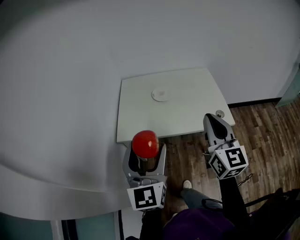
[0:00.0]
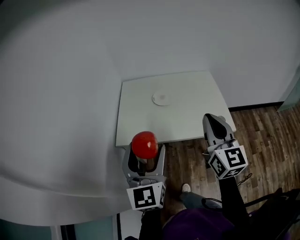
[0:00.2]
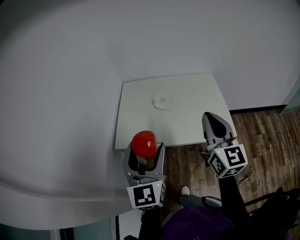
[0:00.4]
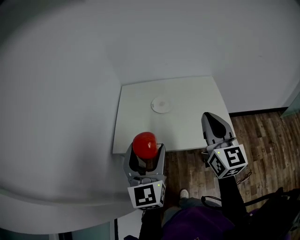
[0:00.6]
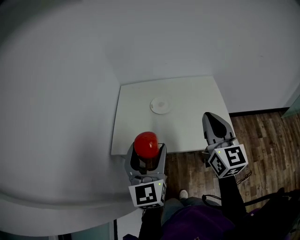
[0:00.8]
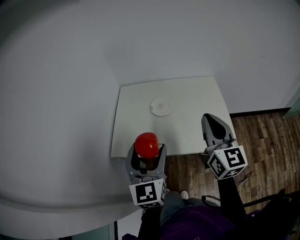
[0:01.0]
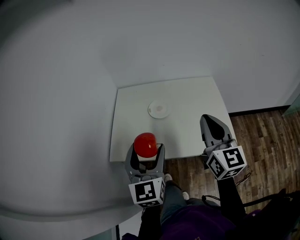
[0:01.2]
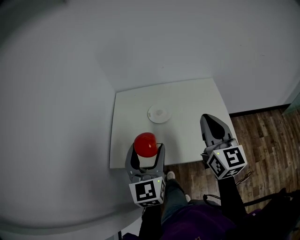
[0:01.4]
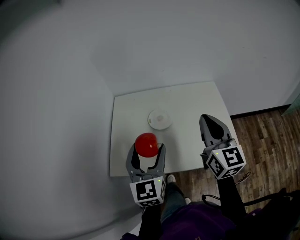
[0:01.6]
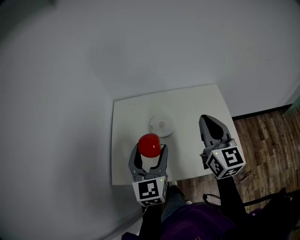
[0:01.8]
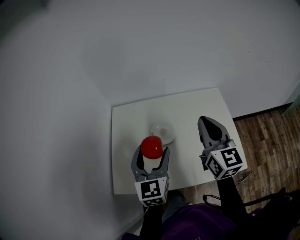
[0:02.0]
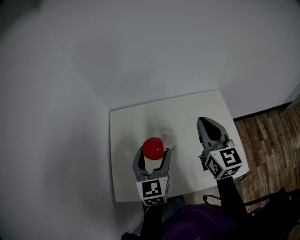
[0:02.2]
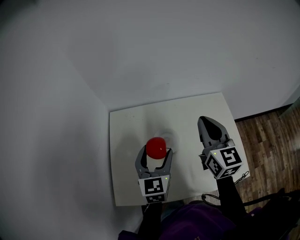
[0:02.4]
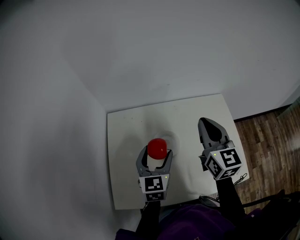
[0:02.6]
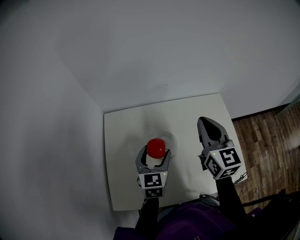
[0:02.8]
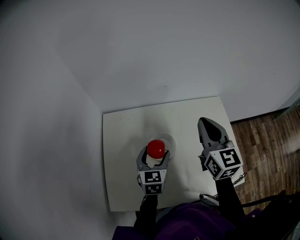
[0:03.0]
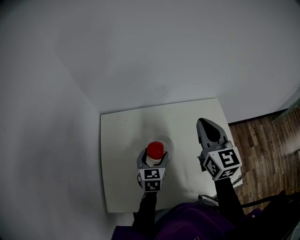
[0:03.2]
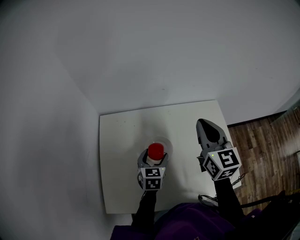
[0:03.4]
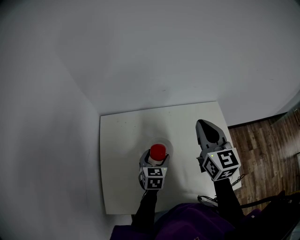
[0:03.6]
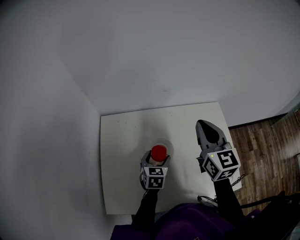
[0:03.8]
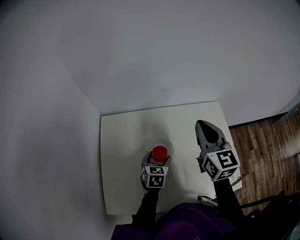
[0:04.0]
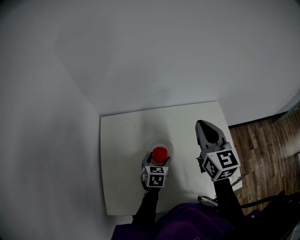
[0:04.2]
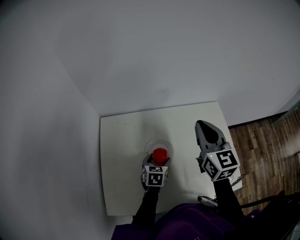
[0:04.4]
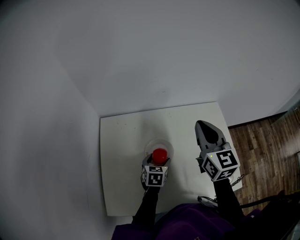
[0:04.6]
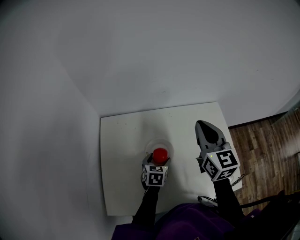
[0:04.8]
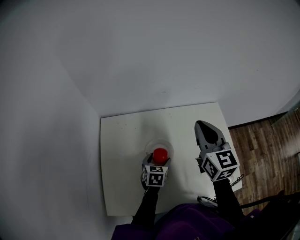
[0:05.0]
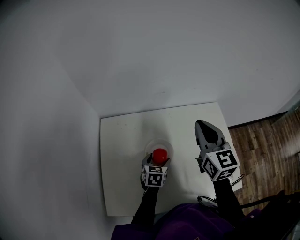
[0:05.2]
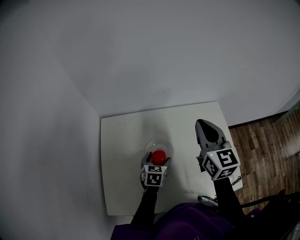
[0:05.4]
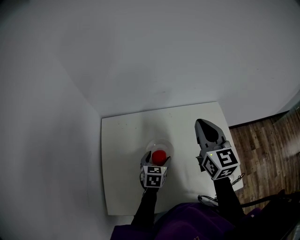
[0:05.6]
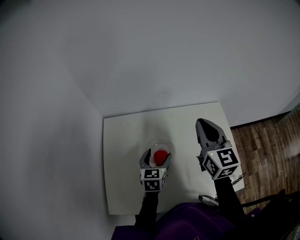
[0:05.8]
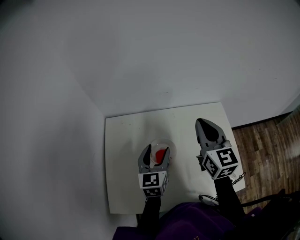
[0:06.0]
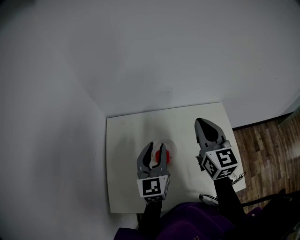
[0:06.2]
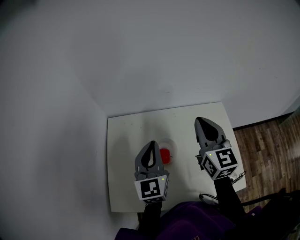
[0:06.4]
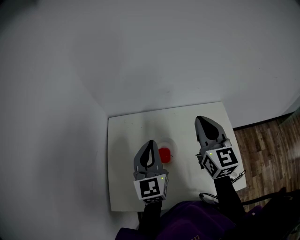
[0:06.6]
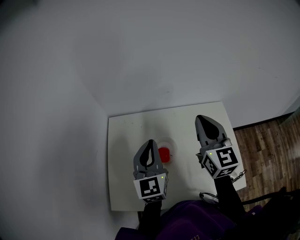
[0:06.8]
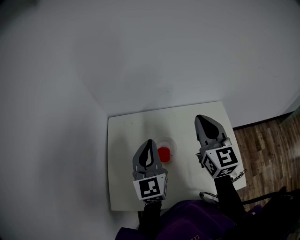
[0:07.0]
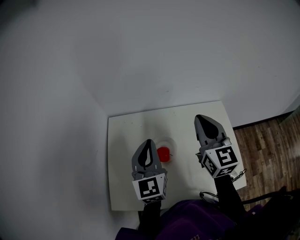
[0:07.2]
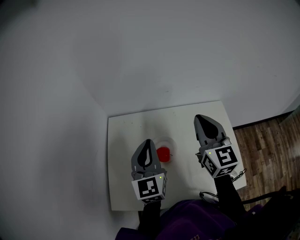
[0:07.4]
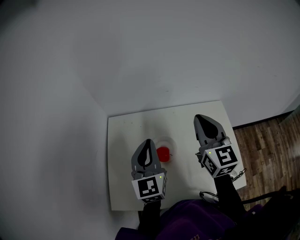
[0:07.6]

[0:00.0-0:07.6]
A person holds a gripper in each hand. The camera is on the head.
0:00.0 to 0:01.6: The grippers both shift forward by some 25 cm.
0:01.6 to 0:03.0: The right gripper goes roughly 20 cm forward, while the left gripper travels forward and downward by about 30 cm, and swivels roughly 30 degrees.
0:03.0 to 0:04.6: The left gripper heads downward, covering approximately 10 cm.
0:04.6 to 0:06.0: The left gripper is displaced upward by roughly 15 cm, and changes its angle by roughly 30 degrees.
0:06.0 to 0:07.6: The left gripper shifts about 10 cm upward, and closes up.

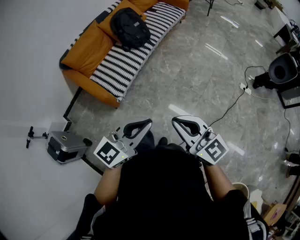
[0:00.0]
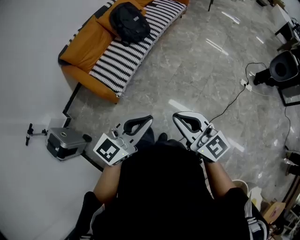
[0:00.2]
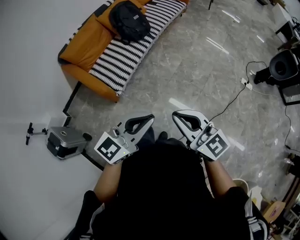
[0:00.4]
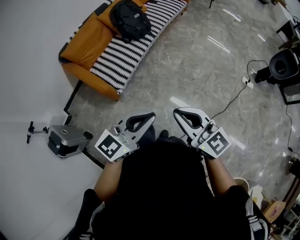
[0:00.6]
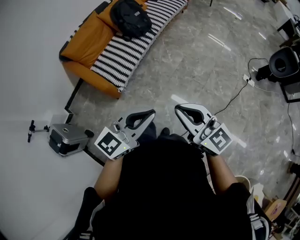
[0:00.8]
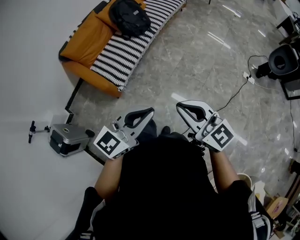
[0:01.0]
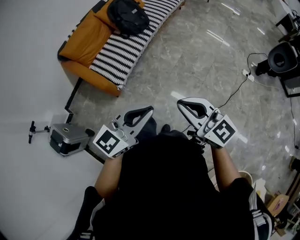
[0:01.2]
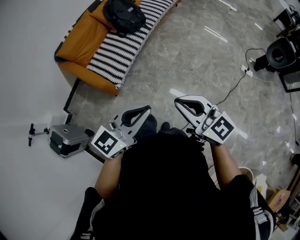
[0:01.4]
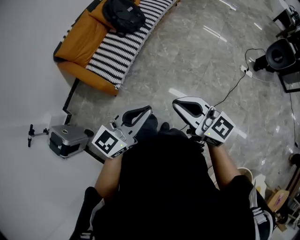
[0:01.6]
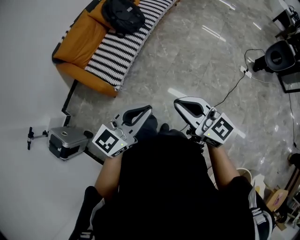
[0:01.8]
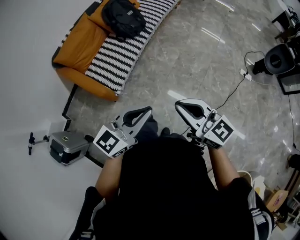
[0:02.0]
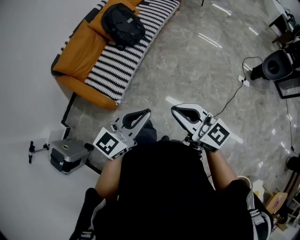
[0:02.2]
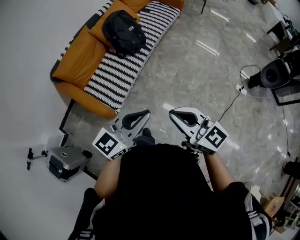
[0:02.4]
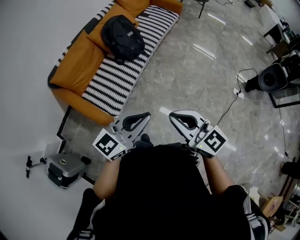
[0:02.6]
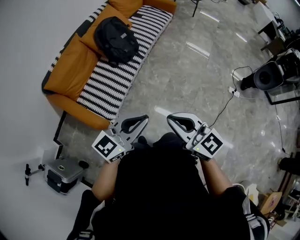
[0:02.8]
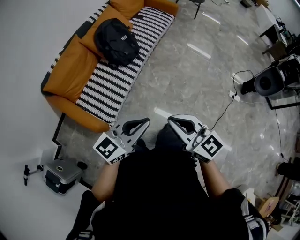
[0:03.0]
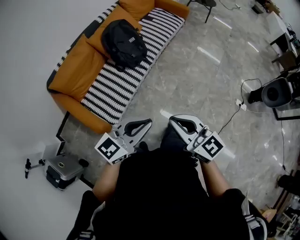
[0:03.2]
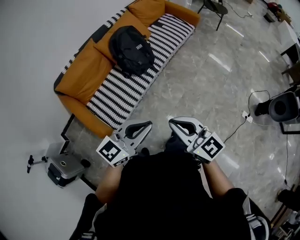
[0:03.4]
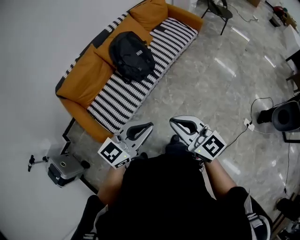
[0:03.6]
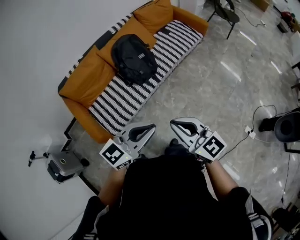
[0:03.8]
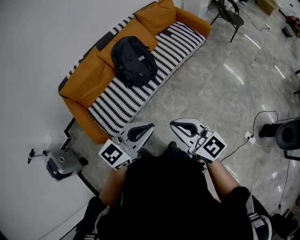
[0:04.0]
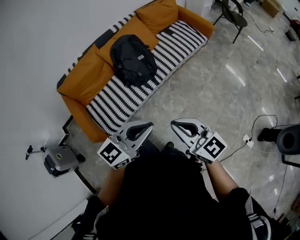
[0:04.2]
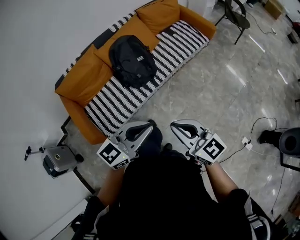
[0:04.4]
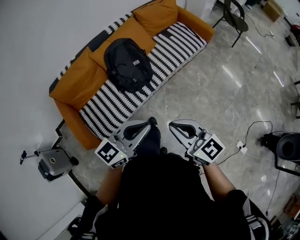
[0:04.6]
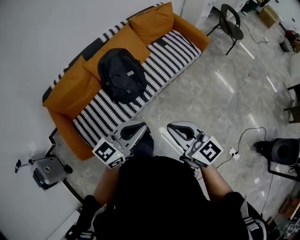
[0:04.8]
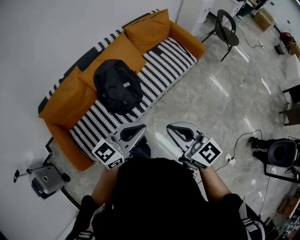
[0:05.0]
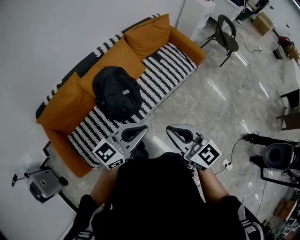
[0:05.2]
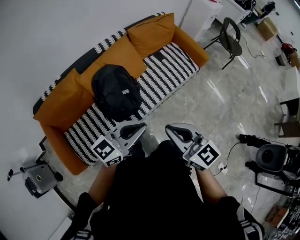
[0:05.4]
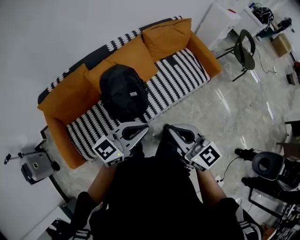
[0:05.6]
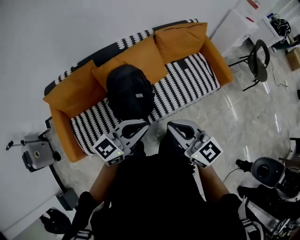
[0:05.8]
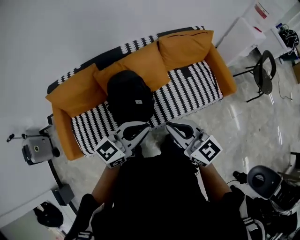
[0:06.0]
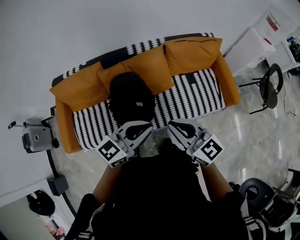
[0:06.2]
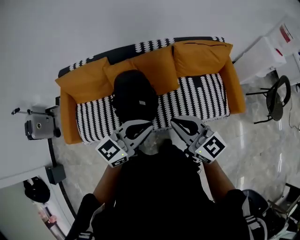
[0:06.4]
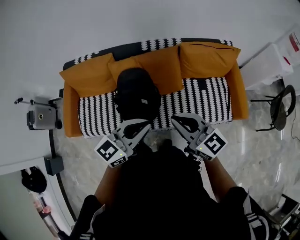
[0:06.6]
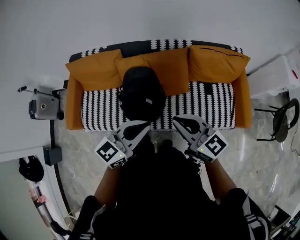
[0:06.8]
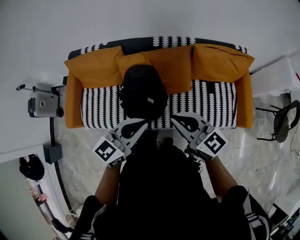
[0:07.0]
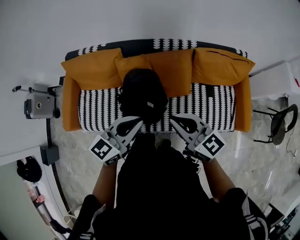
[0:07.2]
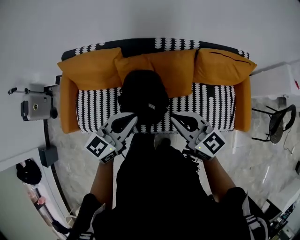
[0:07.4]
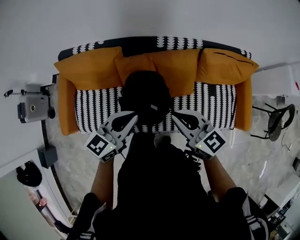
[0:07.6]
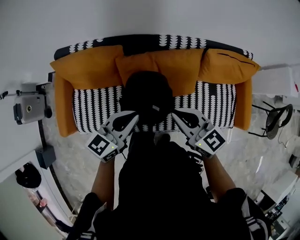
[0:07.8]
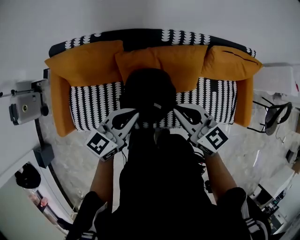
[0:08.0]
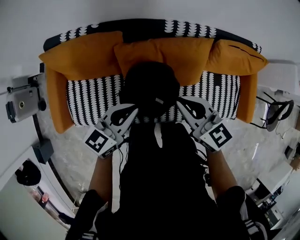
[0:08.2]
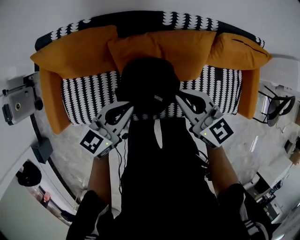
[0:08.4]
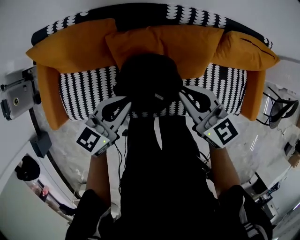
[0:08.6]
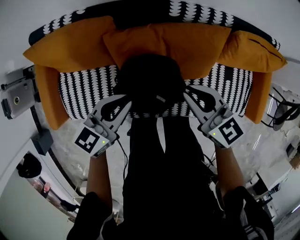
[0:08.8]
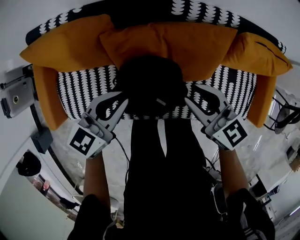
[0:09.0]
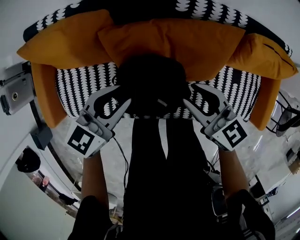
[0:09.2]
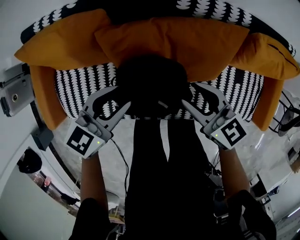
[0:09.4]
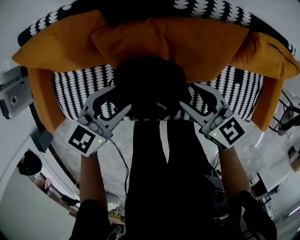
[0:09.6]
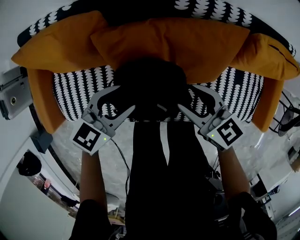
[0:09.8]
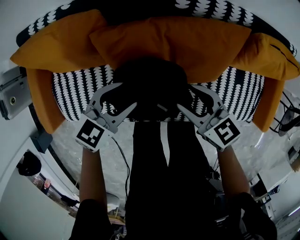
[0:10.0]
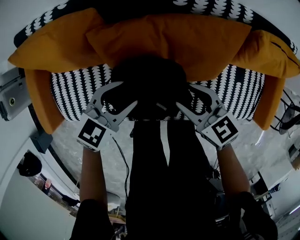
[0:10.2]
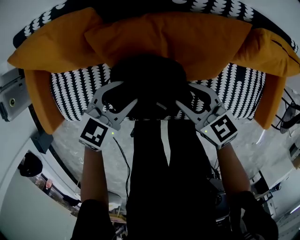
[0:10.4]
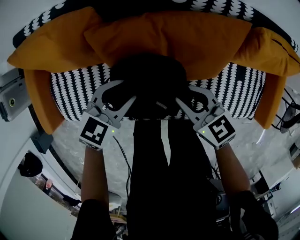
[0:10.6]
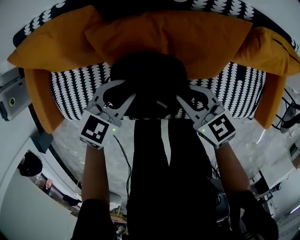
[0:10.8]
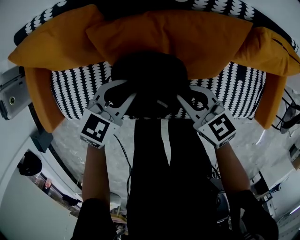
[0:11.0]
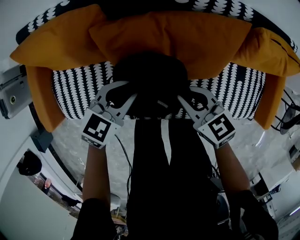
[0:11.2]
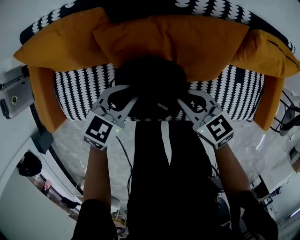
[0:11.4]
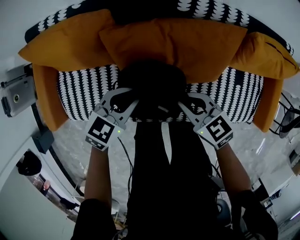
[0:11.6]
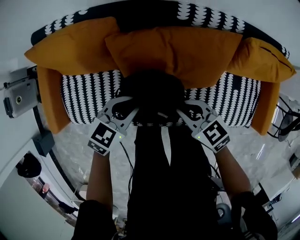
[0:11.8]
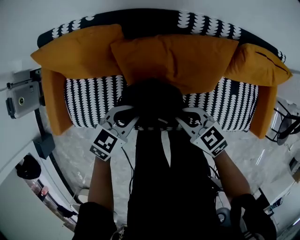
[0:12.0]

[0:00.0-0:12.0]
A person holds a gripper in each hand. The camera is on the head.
0:00.0 to 0:01.6: The grippers move only a little.
0:01.6 to 0:03.0: The two grippers go about 20 cm forward.
0:03.0 to 0:04.4: Both grippers travel together forward and to the right, about 30 cm. The left gripper swivels some 20 degrees, while the right gripper swivels roughly 20 degrees.
0:04.4 to 0:06.0: Both grippers move forward, some 40 cm.
0:06.0 to 0:07.6: The left gripper changes place by some 20 cm, and turns by approximately 30 degrees. Meanwhile the right gripper changes place by approximately 20 cm, and turns by approximately 20 degrees.
0:07.6 to 0:09.0: The grippers both shift downward and forward by about 20 cm. The right gripper opens its fingers.
0:09.0 to 0:10.4: The two grippers go roughly 10 cm downward. The left gripper opens its fingers. The right gripper opens.
0:10.4 to 0:12.0: The left gripper shifts by some 5 cm, and closes its fingers, while the right gripper moves roughly 5 cm, and closes up.

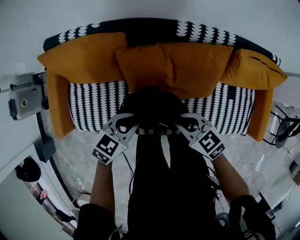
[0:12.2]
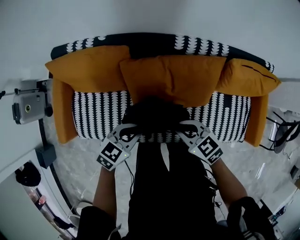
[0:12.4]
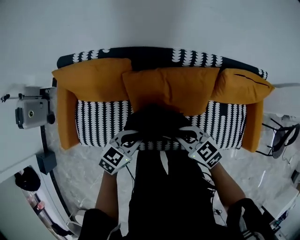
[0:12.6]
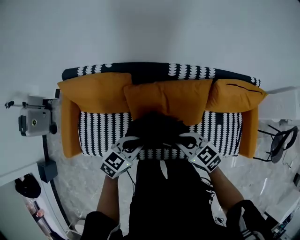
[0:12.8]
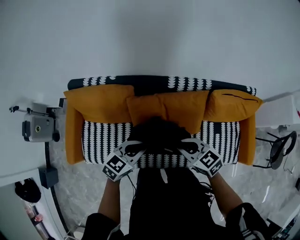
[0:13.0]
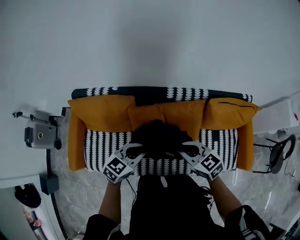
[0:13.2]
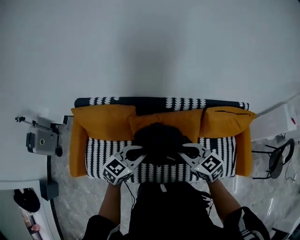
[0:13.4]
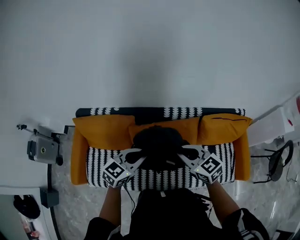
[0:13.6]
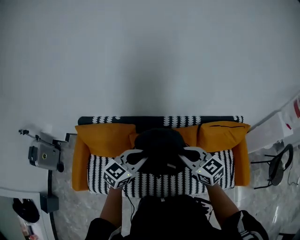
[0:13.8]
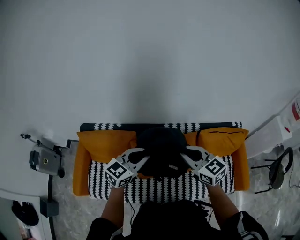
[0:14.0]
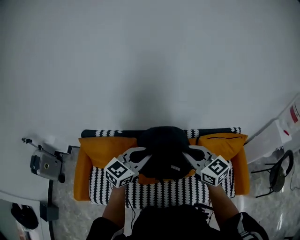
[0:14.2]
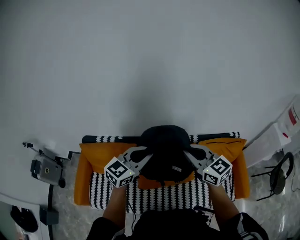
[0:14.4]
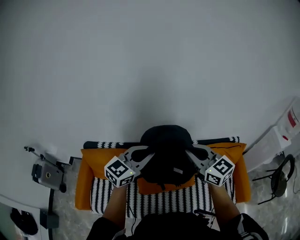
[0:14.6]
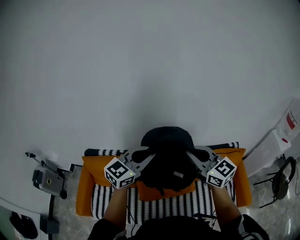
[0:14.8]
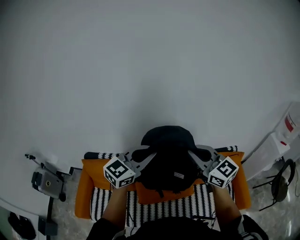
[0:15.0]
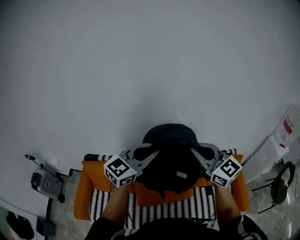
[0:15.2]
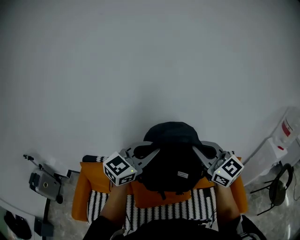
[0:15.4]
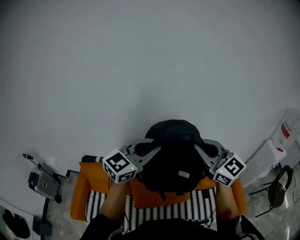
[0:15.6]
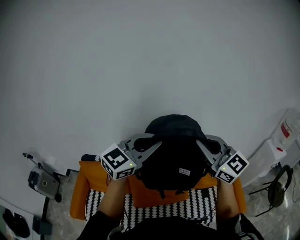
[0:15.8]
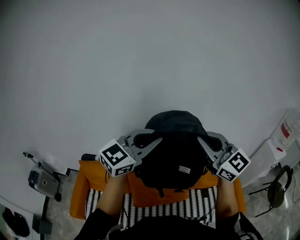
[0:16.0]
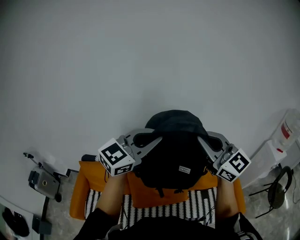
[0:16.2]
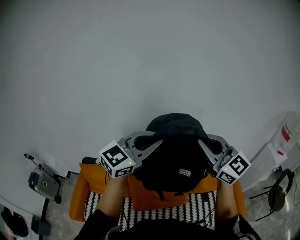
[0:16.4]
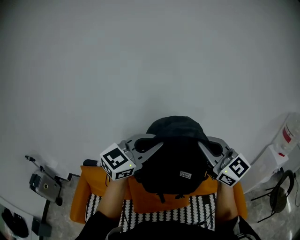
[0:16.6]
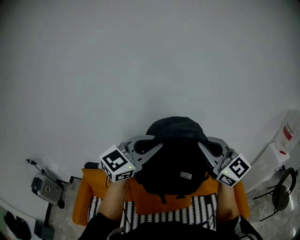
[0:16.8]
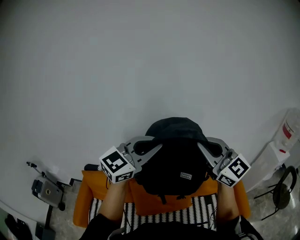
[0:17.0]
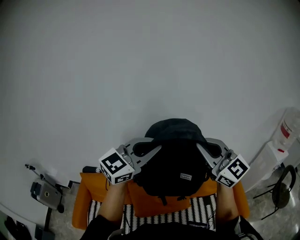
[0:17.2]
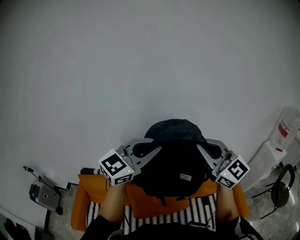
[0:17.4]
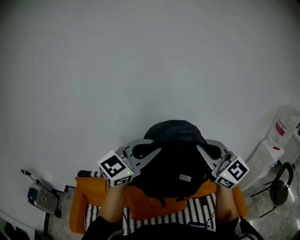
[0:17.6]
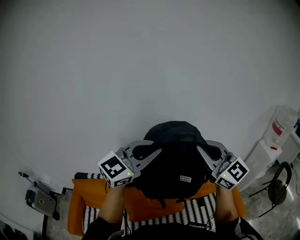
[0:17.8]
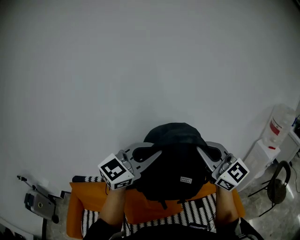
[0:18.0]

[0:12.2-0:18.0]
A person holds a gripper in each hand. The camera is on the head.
0:12.2 to 0:13.6: The grippers both shift upward by approximately 25 cm. The left gripper turns by approximately 20 degrees. The right gripper rotates some 20 degrees.
0:13.6 to 0:15.0: The two grippers go some 25 cm upward. The right gripper swivels some 30 degrees. The left gripper turns by roughly 30 degrees.
0:15.0 to 0:16.6: Both grippers travel together upward, some 10 cm.
0:16.6 to 0:18.0: Both grippers move to the right, approximately 10 cm.
